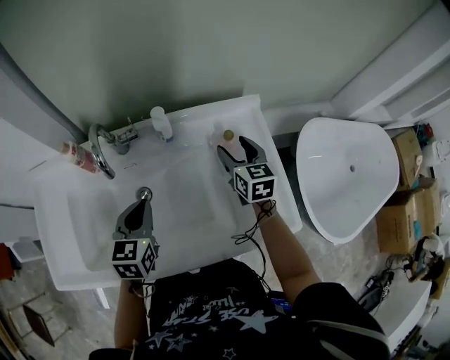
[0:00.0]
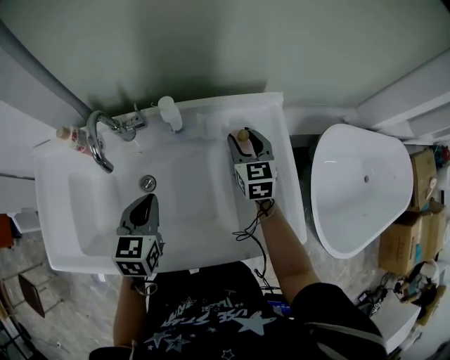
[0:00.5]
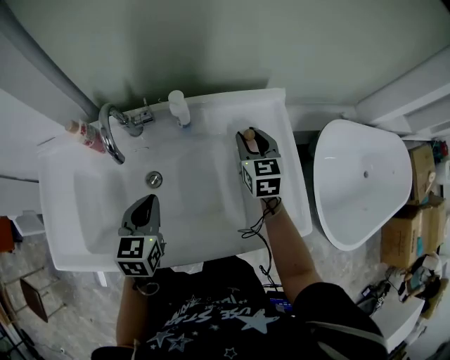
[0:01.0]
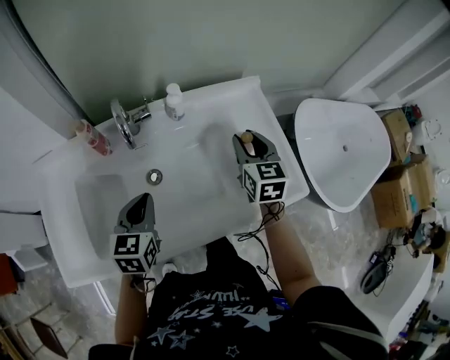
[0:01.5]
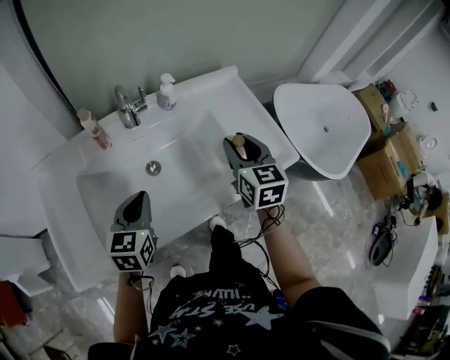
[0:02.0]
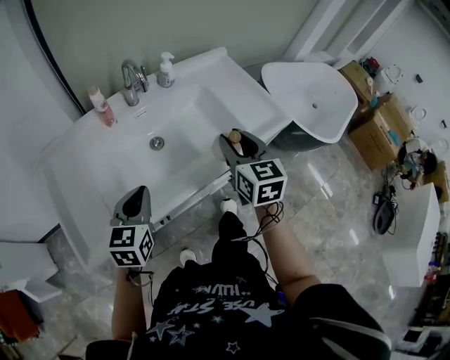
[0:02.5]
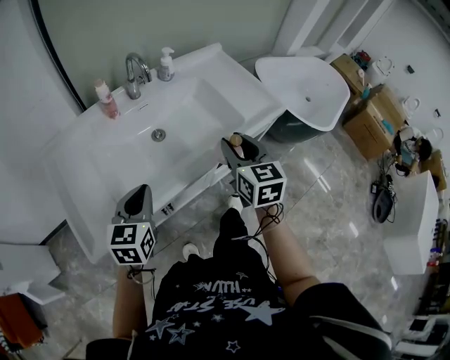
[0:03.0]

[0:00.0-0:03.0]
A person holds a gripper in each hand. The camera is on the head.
0:00.0 to 0:01.5: The left gripper moves about 5 cm, while the right gripper is displaced backward and upward by about 10 cm, and closes.
0:01.5 to 0:03.0: The left gripper is displaced backward by about 20 cm, and rotates roughly 20 degrees. Meanwhile the right gripper is displaced backward by approximately 30 cm.

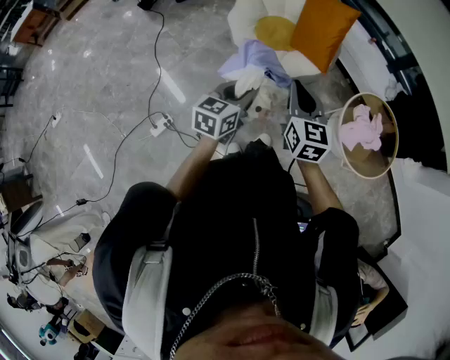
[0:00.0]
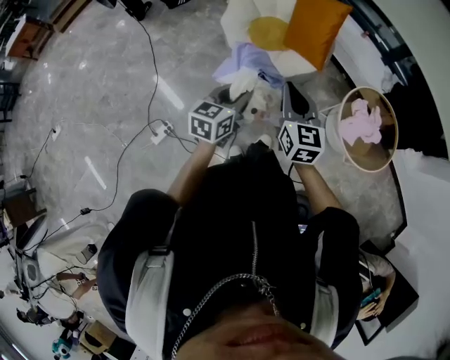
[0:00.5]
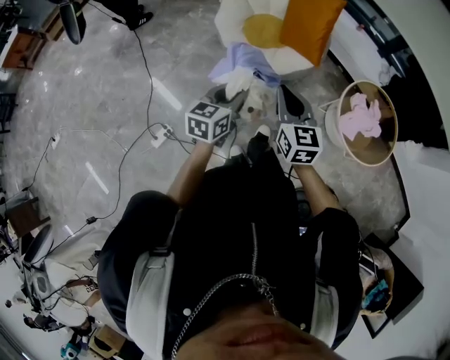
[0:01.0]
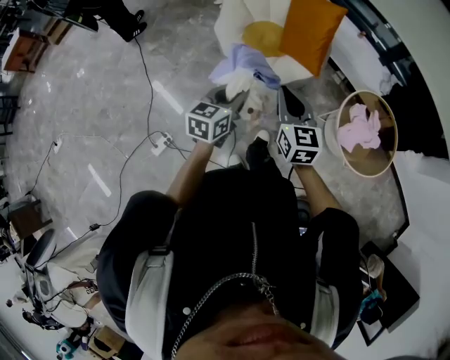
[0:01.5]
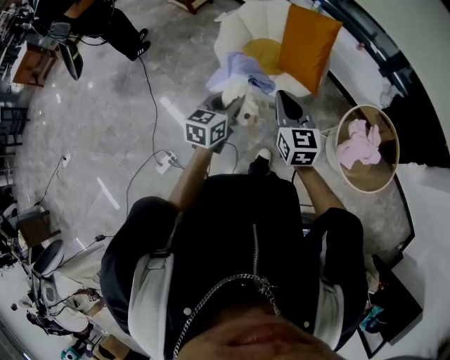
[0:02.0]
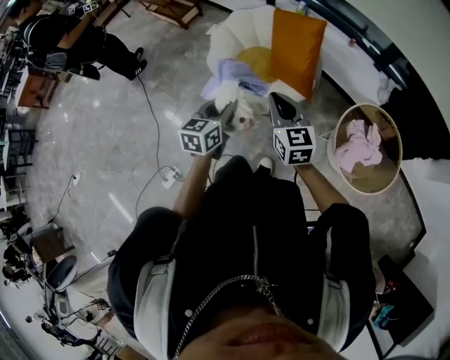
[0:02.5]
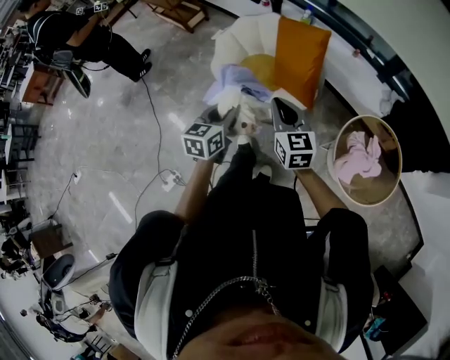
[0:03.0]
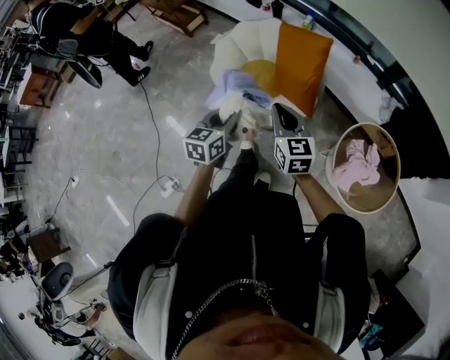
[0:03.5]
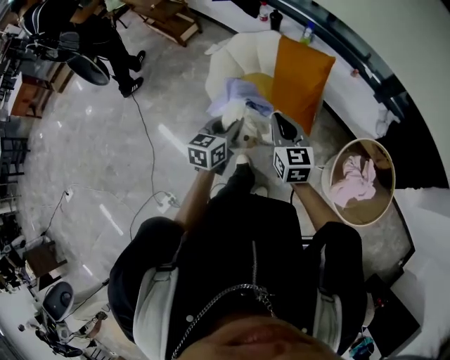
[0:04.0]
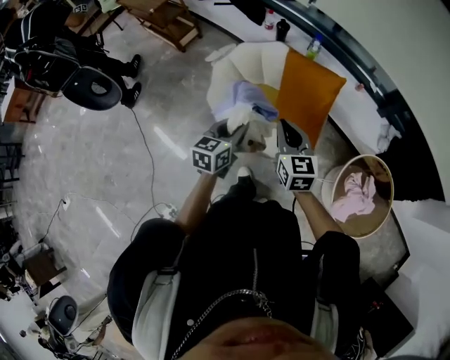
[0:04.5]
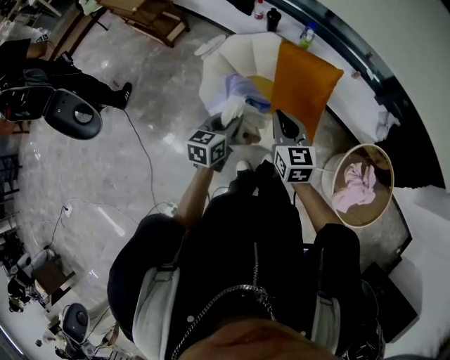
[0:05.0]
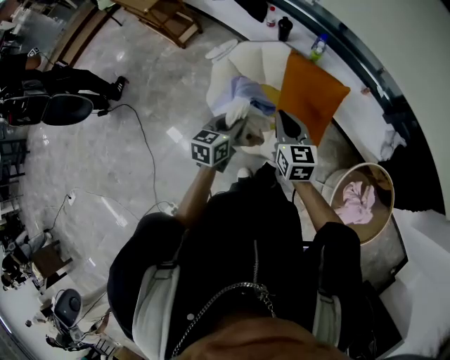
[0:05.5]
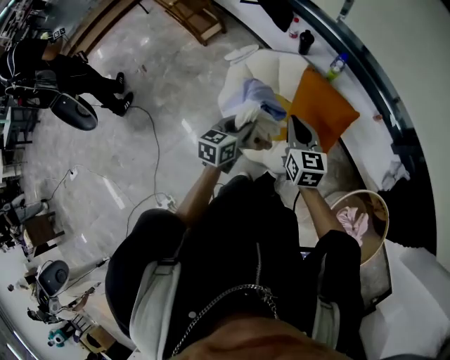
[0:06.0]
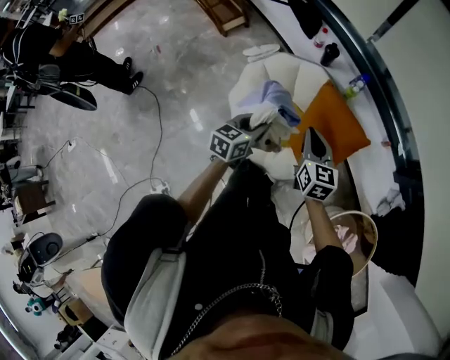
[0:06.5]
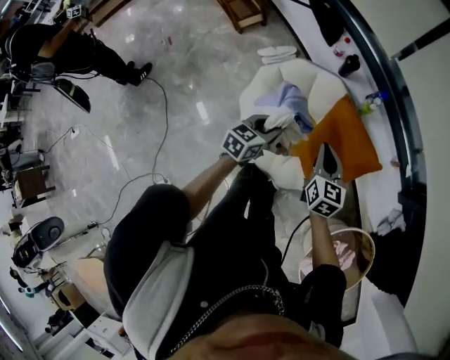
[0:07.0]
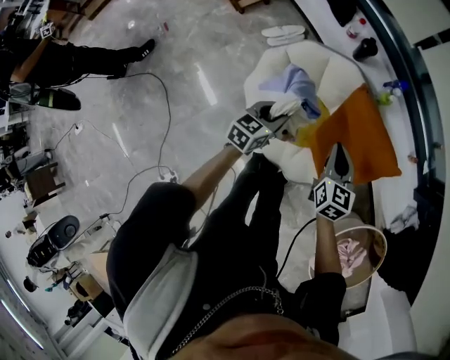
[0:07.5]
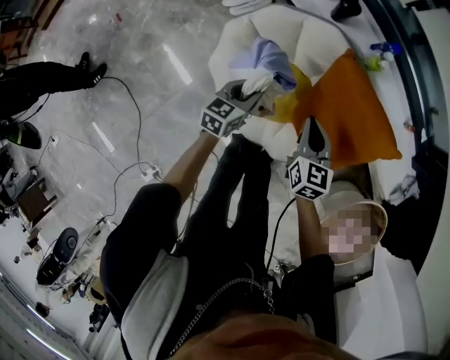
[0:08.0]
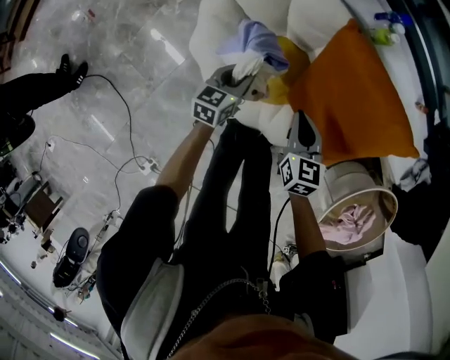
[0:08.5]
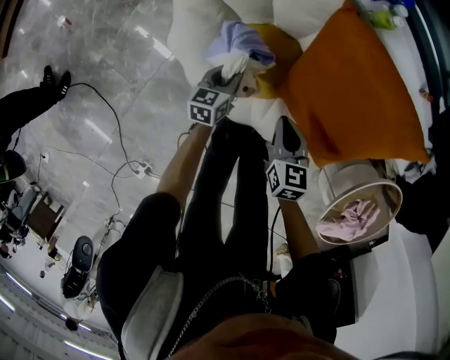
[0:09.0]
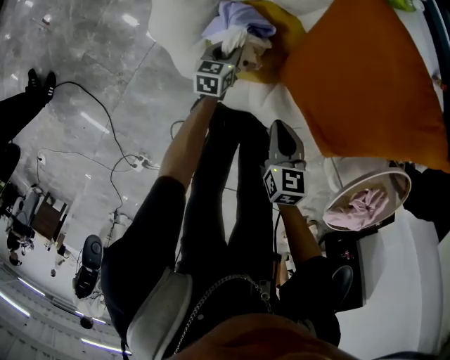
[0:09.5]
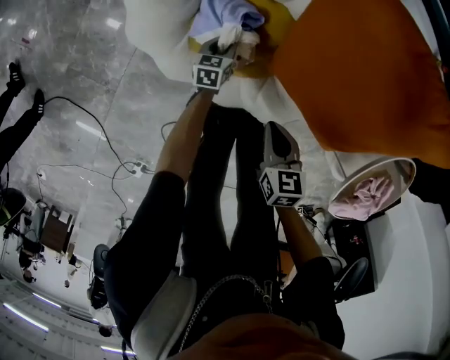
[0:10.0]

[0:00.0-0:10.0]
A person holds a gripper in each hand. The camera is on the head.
0:00.0 to 0:02.0: Both grippers move forward, about 15 cm.
0:02.0 to 0:04.0: The grippers both shift forward by roughly 20 cm.
0:04.0 to 0:06.0: The grippers both shift forward by approximately 25 cm.
0:06.0 to 0:08.0: The right gripper shifts approximately 30 cm downward and forward, while the left gripper shifts approximately 35 cm forward and downward.
0:08.0 to 0:10.0: Both grippers travel together downward, some 35 cm. The right gripper swivels roughly 30 degrees.

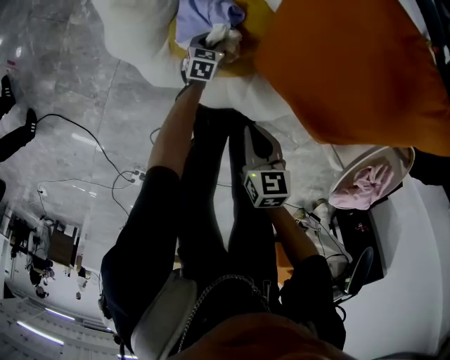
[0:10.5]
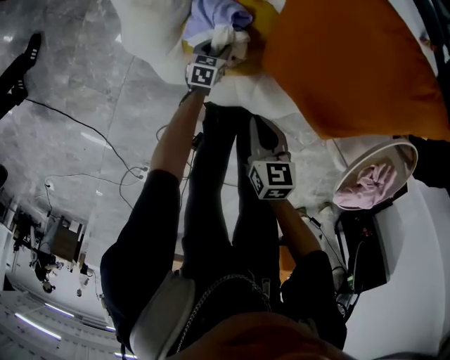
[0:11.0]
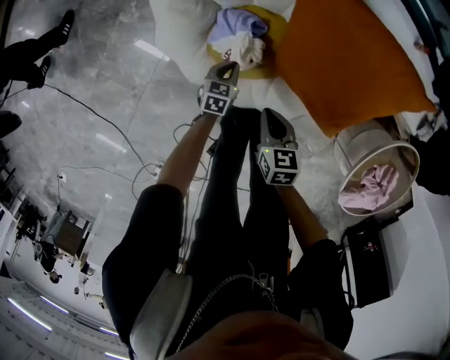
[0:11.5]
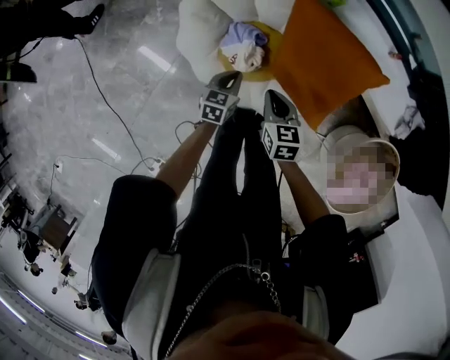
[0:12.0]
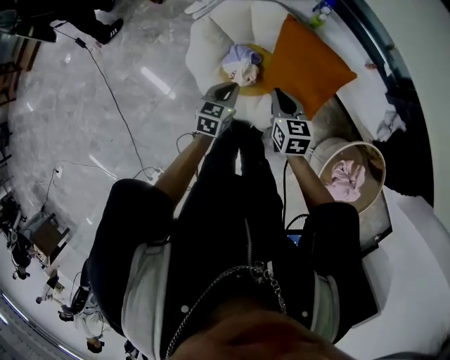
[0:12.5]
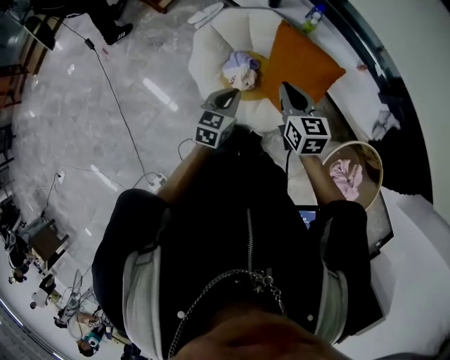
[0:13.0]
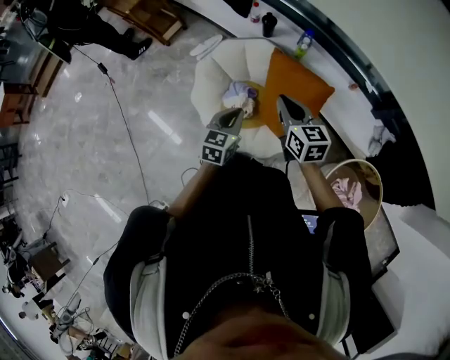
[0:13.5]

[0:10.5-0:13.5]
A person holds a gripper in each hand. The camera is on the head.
0:10.5 to 0:12.0: The left gripper heads upward and backward, covering roughly 40 cm. The right gripper goes about 25 cm upward.
0:12.0 to 0:13.5: The right gripper is displaced upward by some 30 cm, and changes its angle by roughly 20 degrees. The left gripper travels upward and backward by some 35 cm.

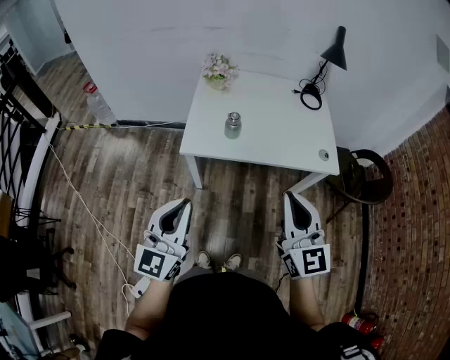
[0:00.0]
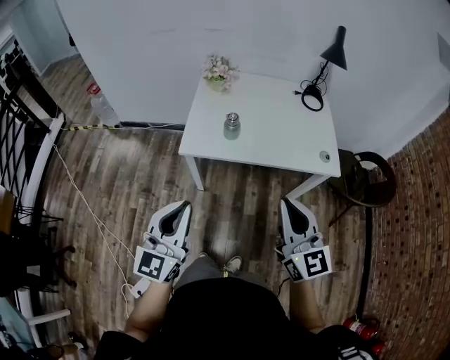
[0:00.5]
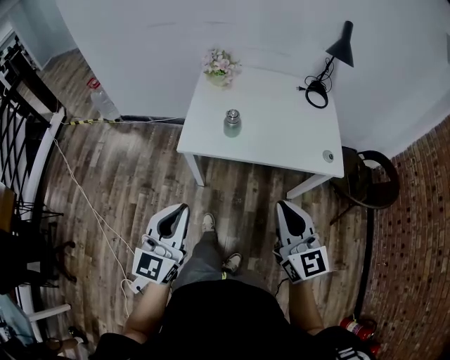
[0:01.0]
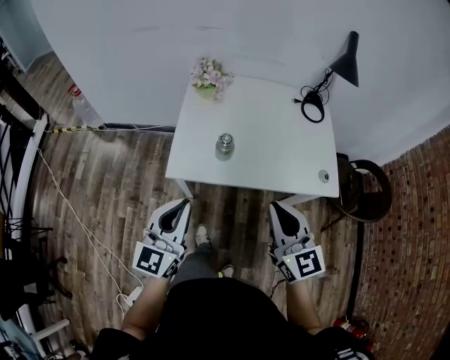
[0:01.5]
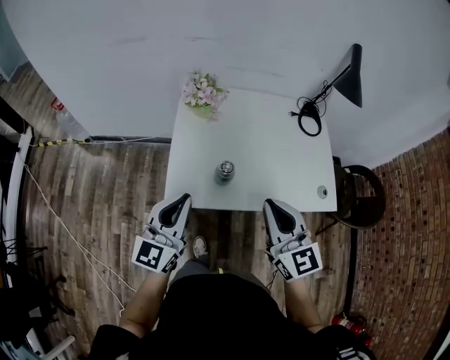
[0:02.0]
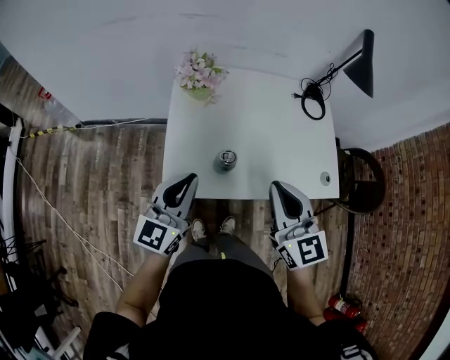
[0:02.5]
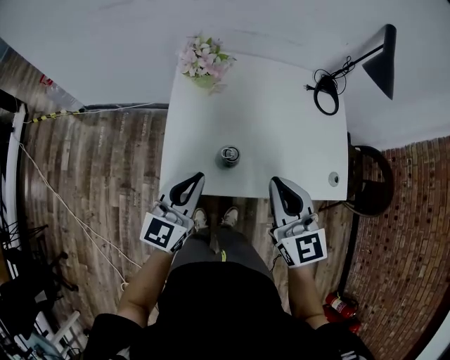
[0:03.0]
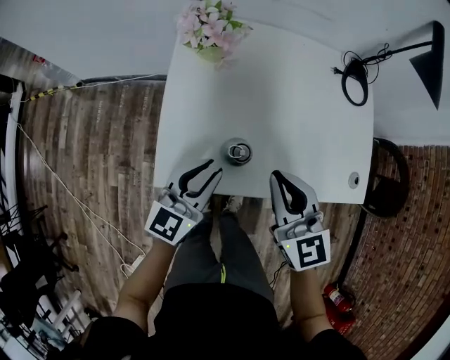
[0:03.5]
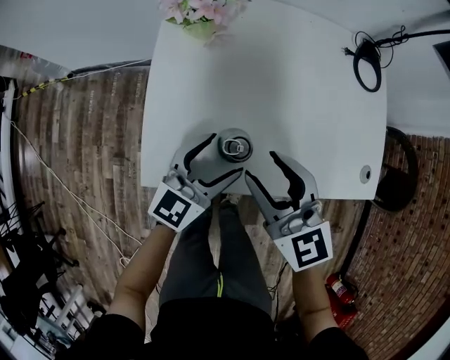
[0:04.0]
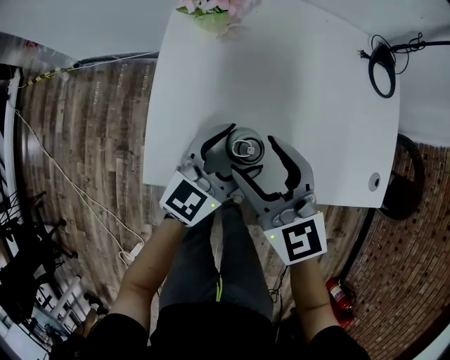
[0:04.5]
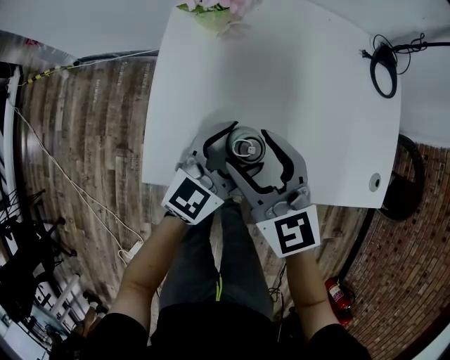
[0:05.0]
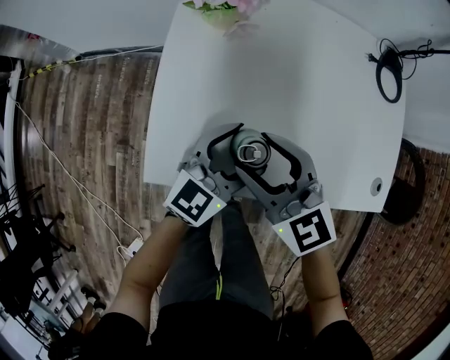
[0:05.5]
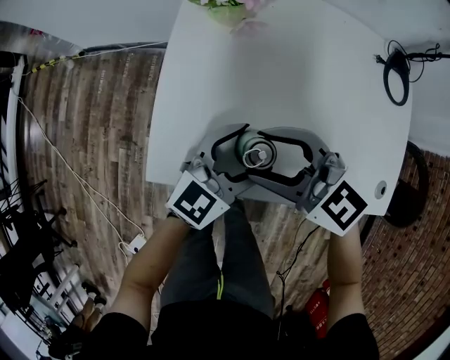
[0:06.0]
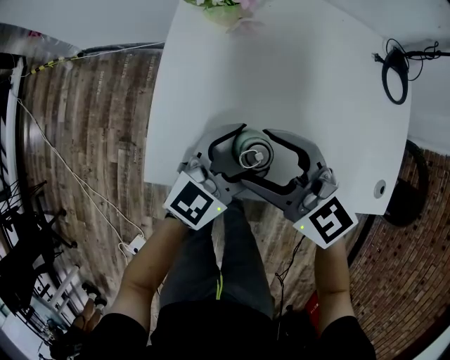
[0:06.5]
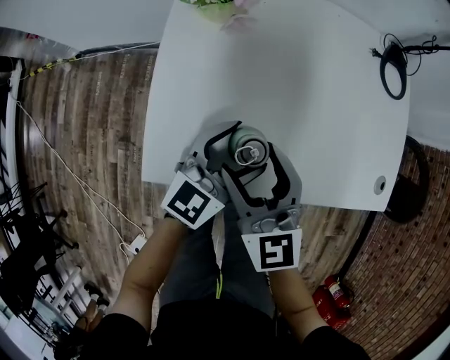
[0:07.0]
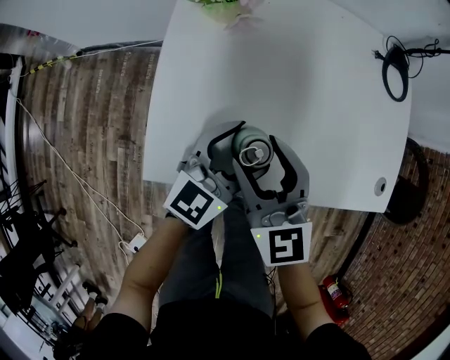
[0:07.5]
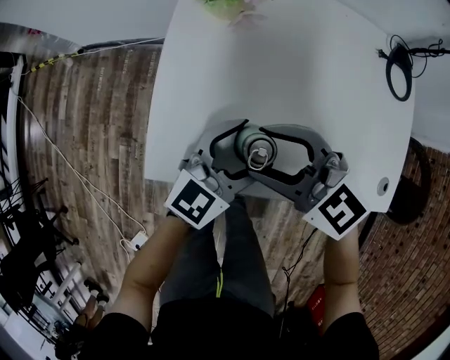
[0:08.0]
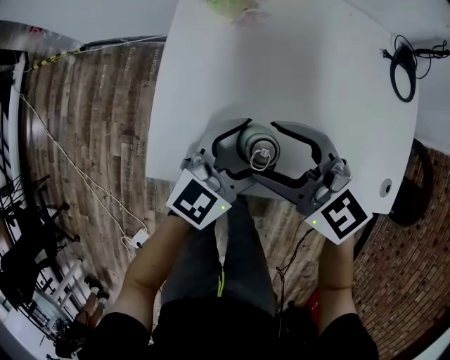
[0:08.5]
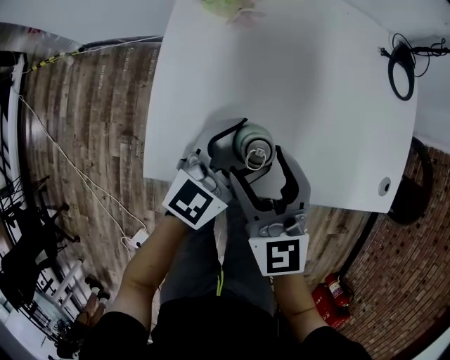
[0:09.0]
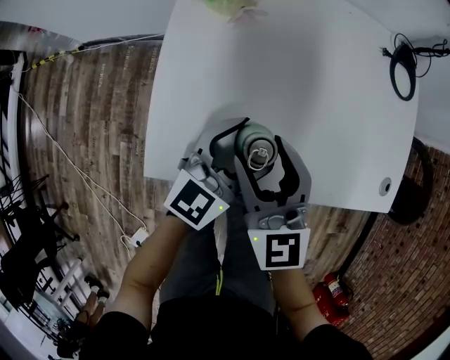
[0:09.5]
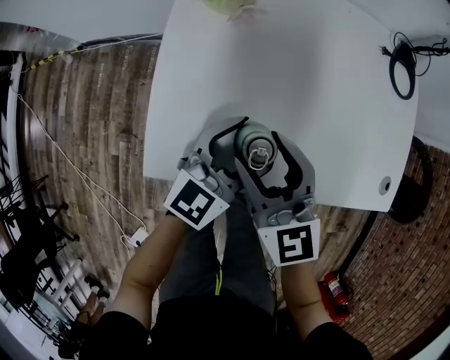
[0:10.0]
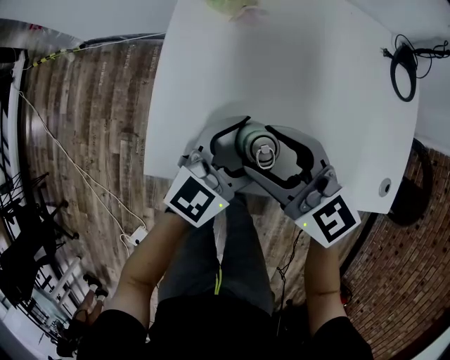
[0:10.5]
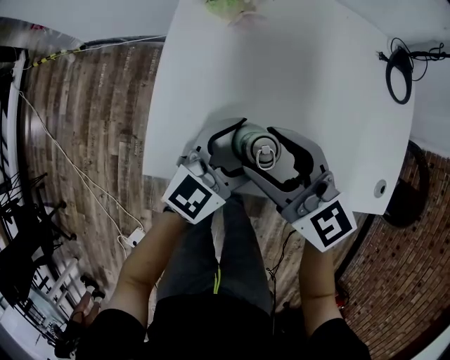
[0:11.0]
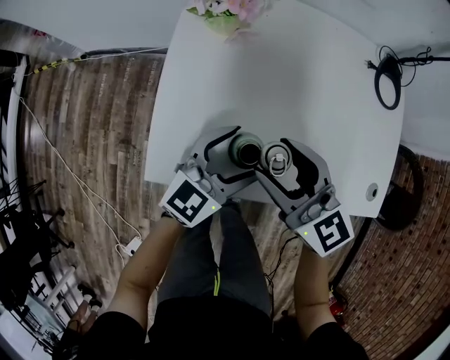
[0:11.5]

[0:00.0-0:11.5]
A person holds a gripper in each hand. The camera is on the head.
0:00.0 to 0:02.0: The grippers both shift forward by some 25 cm.
0:02.0 to 0:04.0: The left gripper travels downward, forward and to the right by approximately 25 cm, rotates roughly 20 degrees, and opens its fingers. The right gripper travels downward and forward by some 20 cm, and opens its fingers.
0:04.0 to 0:06.0: The right gripper changes place by roughly 5 cm, and turns by approximately 40 degrees.
0:06.0 to 0:07.5: The right gripper swivels approximately 50 degrees.
0:09.5 to 0:11.5: The right gripper changes its angle by about 20 degrees.
